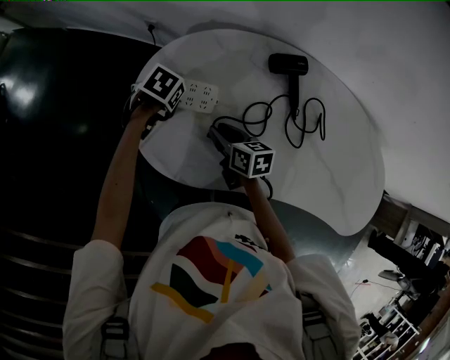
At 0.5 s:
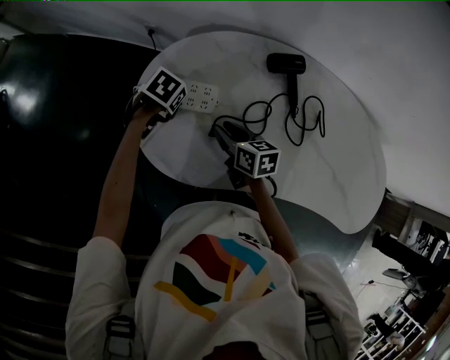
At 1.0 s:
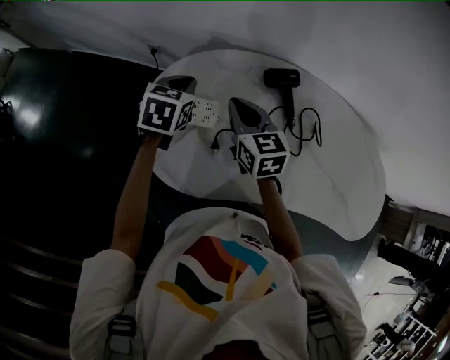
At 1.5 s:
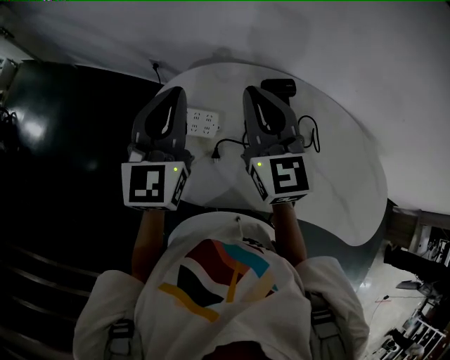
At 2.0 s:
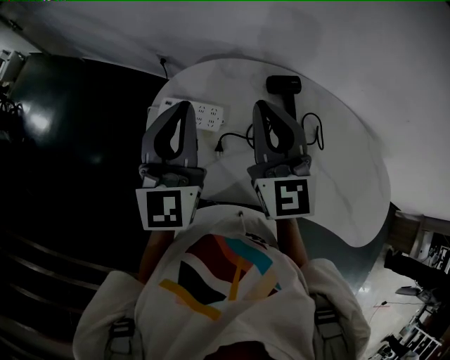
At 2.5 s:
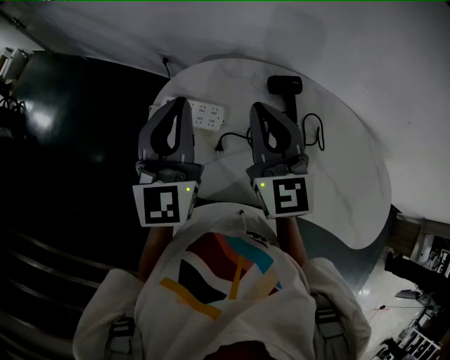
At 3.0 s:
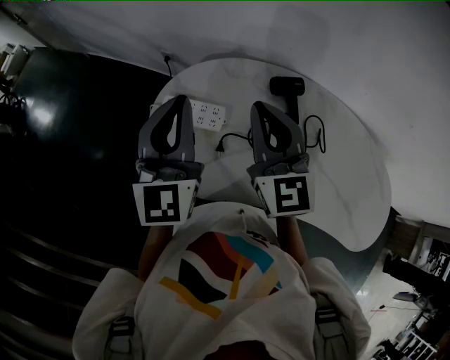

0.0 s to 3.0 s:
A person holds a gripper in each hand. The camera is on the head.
0.0 to 1.5 s: The two grippers go approximately 35 cm upward. The right gripper tips its fingers upward by approximately 30 degrees, and closes its fingers. The left gripper points its fingers roughly 80 degrees further upward.
1.5 to 3.0 s: There are only small adjustments of the grippers.

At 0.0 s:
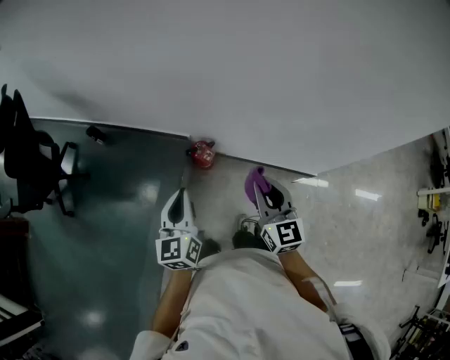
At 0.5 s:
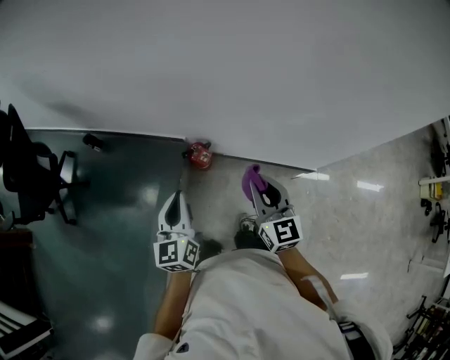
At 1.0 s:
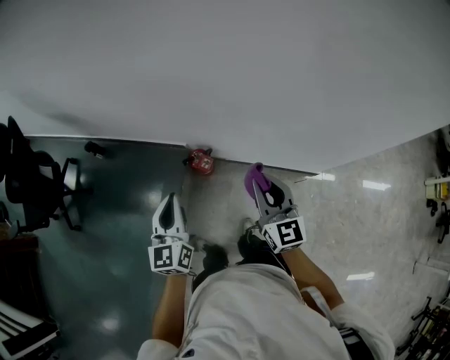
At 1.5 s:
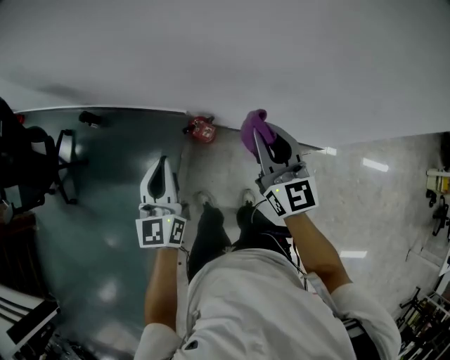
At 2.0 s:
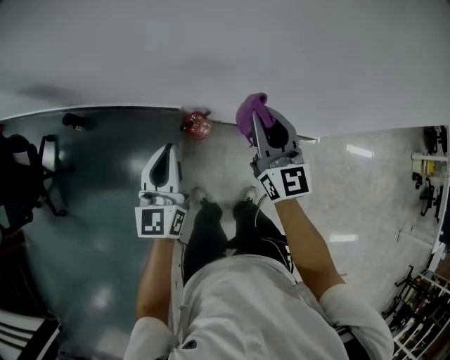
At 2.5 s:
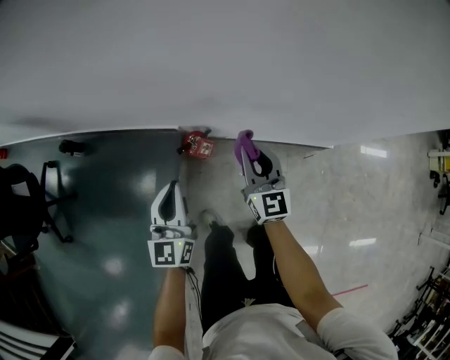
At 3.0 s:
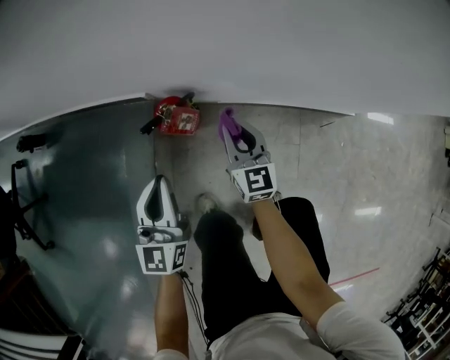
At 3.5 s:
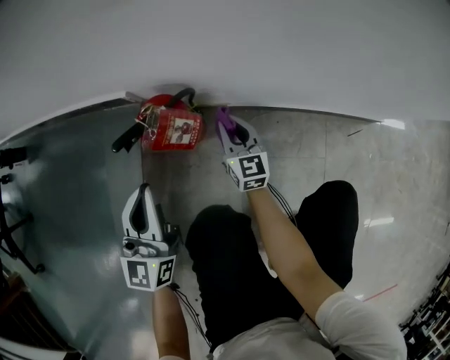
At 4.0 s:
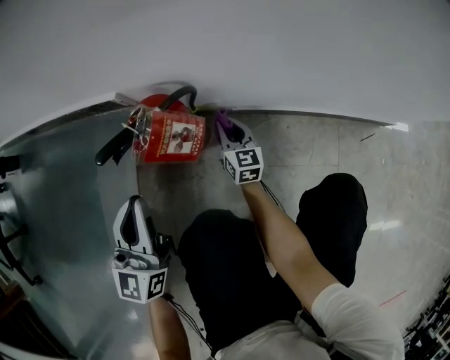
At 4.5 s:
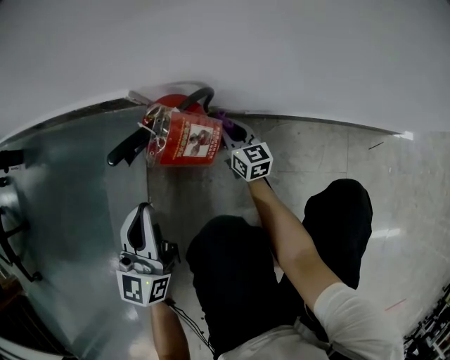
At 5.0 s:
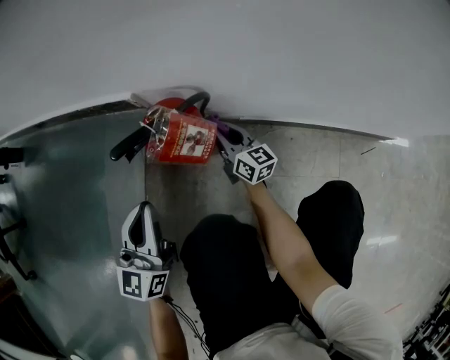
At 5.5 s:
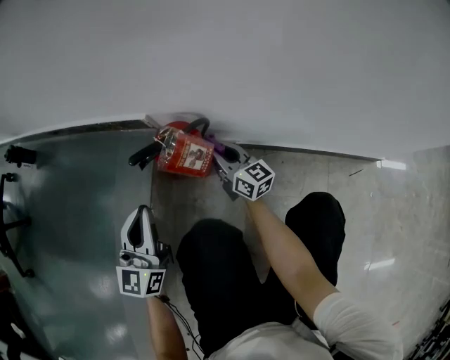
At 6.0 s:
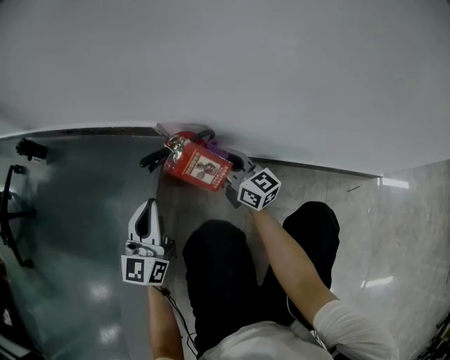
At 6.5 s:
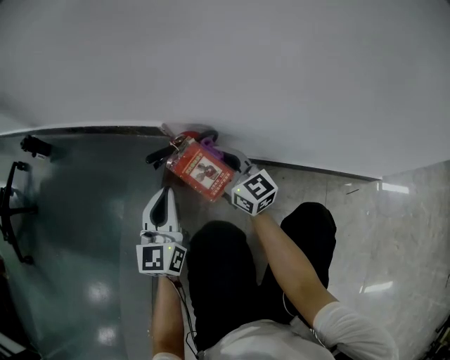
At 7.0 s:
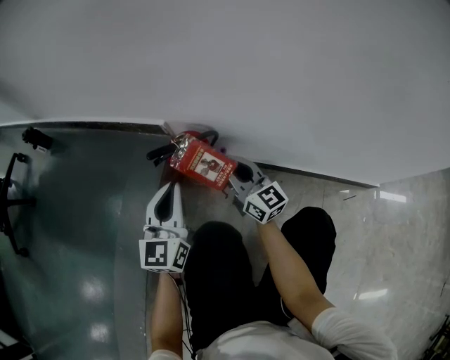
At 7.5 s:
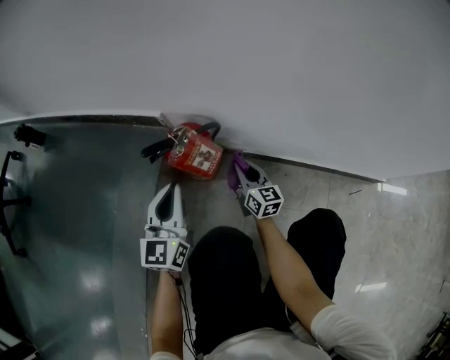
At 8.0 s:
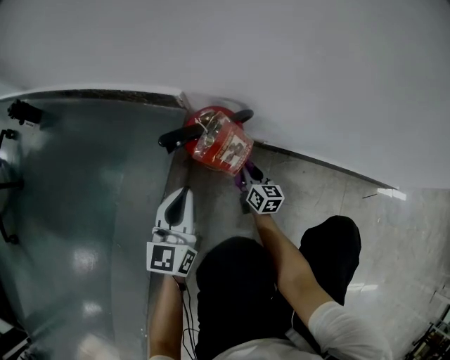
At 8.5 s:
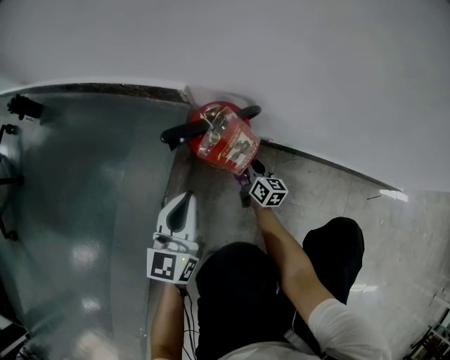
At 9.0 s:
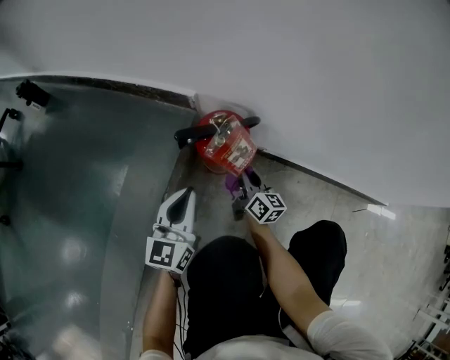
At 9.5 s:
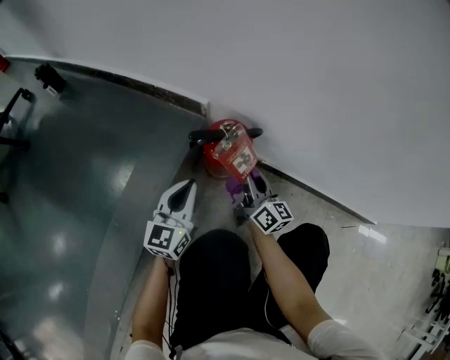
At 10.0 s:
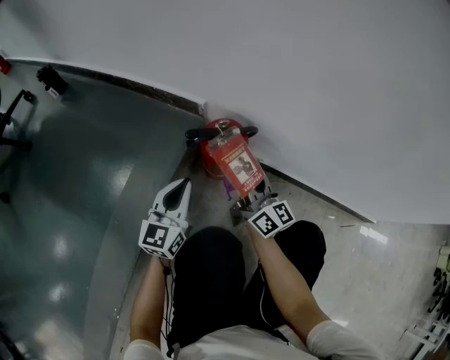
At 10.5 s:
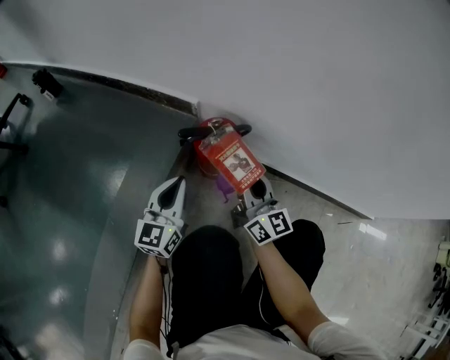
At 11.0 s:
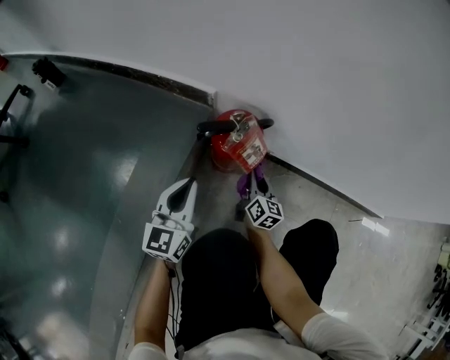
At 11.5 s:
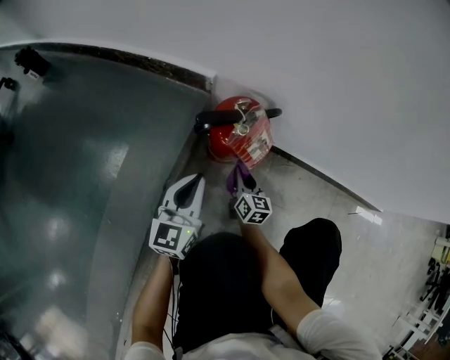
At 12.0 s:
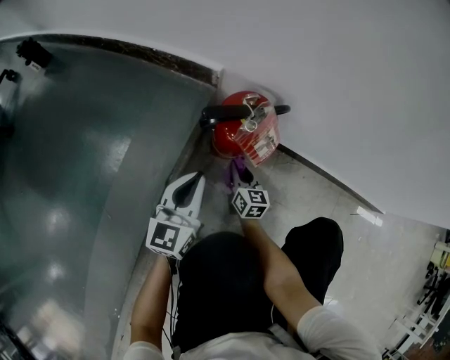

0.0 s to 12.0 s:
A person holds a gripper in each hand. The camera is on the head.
0.0 to 2.0 s: The grippers both shift forward by about 15 cm.
2.0 to 4.0 s: The right gripper shifts roughly 90 cm downward, and rotates approximately 20 degrees. Meanwhile the left gripper travels downward by approximately 60 cm.
4.0 to 6.0 s: The right gripper heads upward, covering approximately 20 cm, and turns by roughly 40 degrees.
6.0 to 8.0 s: The left gripper travels downward by some 10 cm. Meanwhile the right gripper moves downward, some 25 cm, and changes its angle by approximately 30 degrees.
8.0 to 10.0 s: The right gripper heads upward, covering roughly 30 cm, and changes its angle by roughly 30 degrees.
10.0 to 12.0 s: The left gripper heads downward, covering approximately 5 cm. The right gripper goes approximately 30 cm downward, and points its fingers roughly 30 degrees further downward.

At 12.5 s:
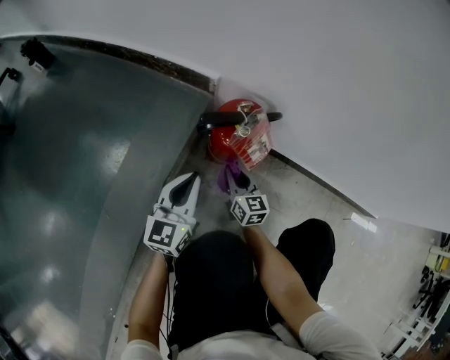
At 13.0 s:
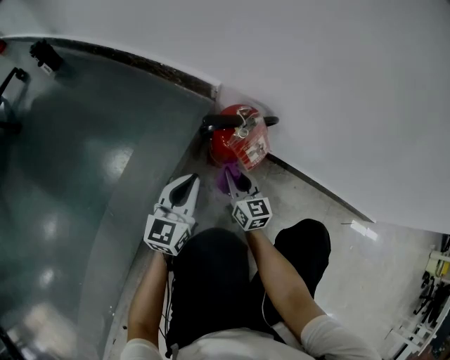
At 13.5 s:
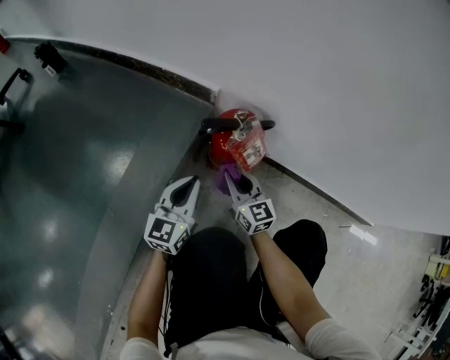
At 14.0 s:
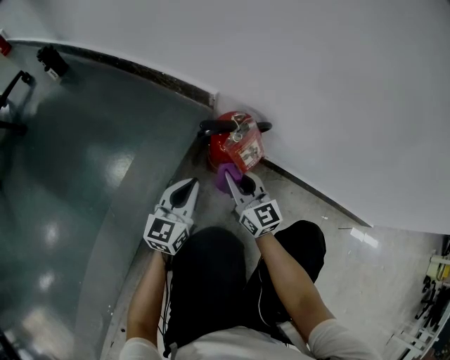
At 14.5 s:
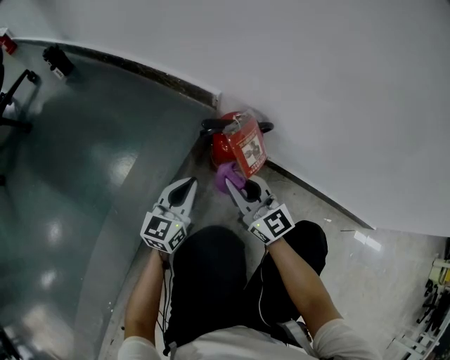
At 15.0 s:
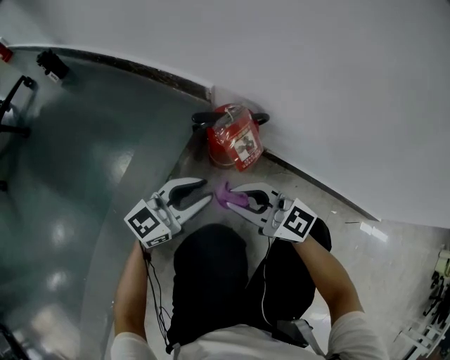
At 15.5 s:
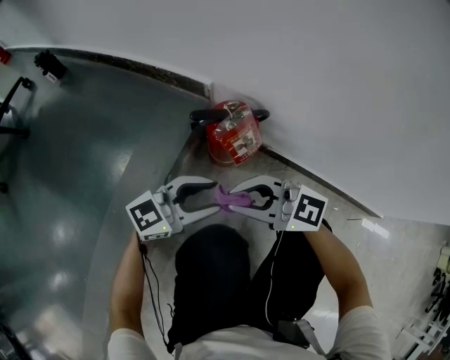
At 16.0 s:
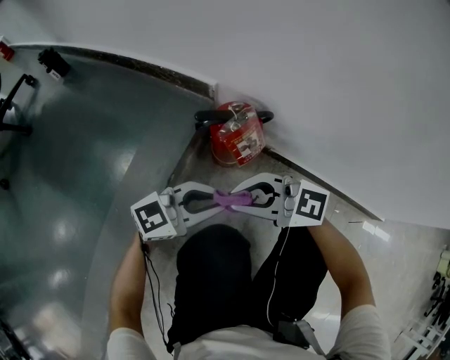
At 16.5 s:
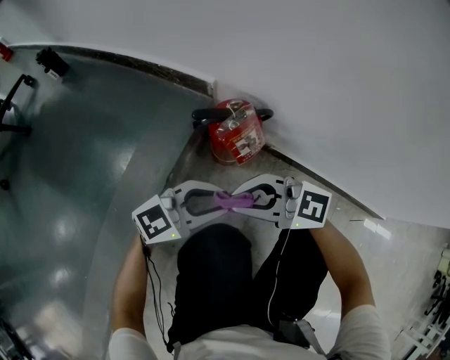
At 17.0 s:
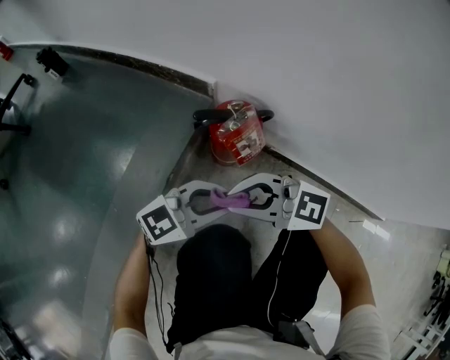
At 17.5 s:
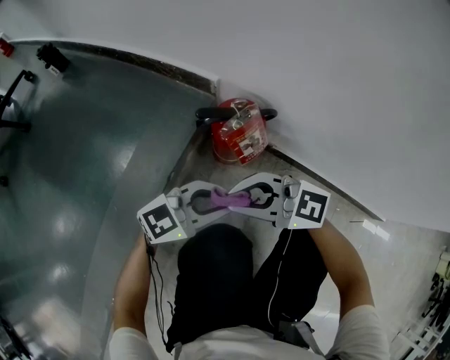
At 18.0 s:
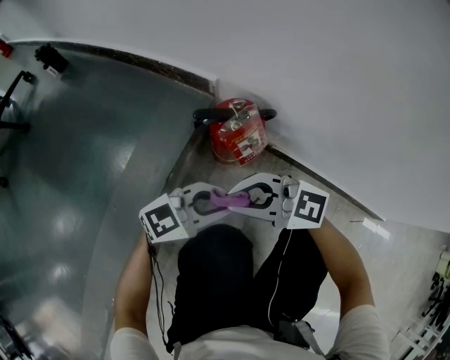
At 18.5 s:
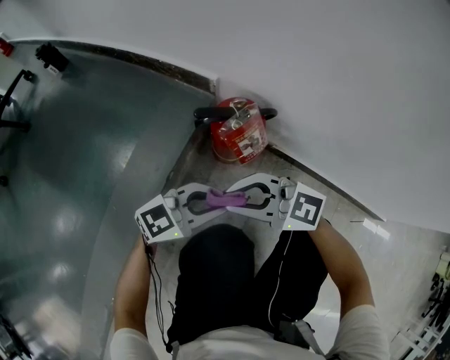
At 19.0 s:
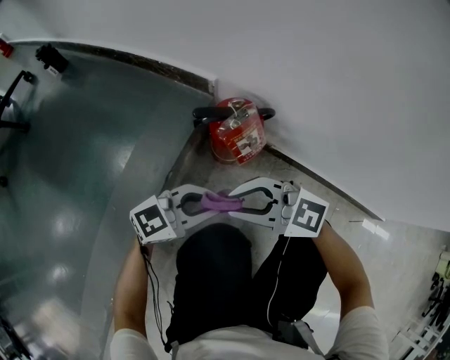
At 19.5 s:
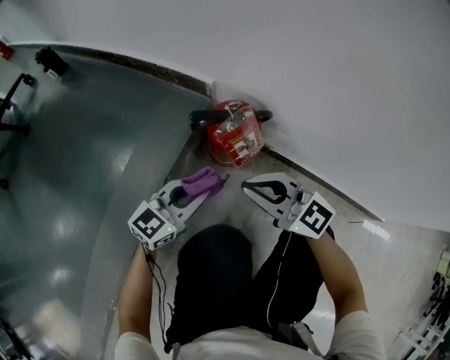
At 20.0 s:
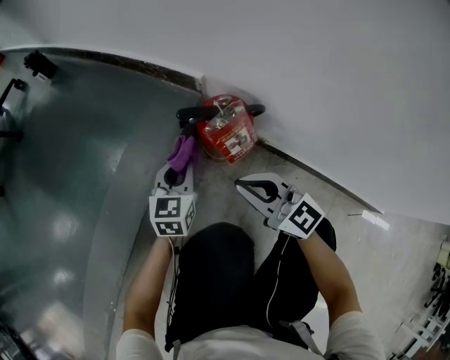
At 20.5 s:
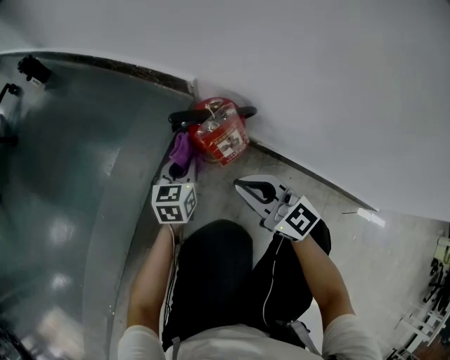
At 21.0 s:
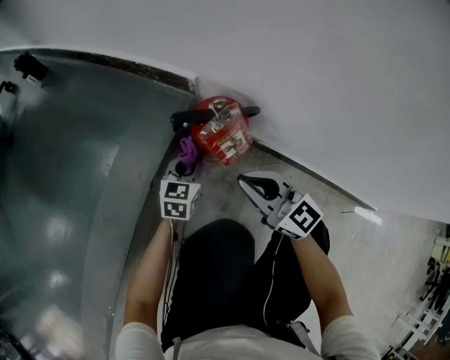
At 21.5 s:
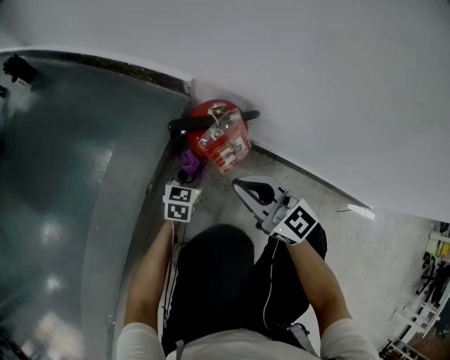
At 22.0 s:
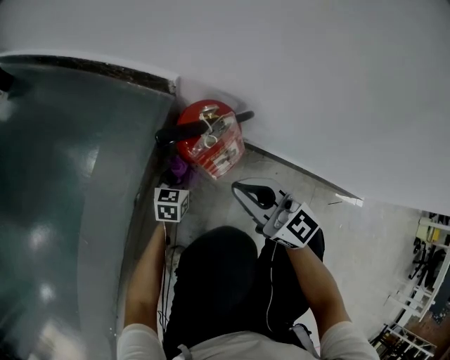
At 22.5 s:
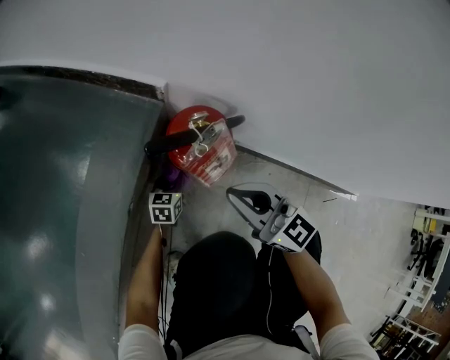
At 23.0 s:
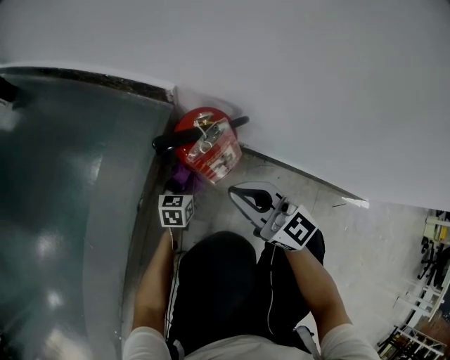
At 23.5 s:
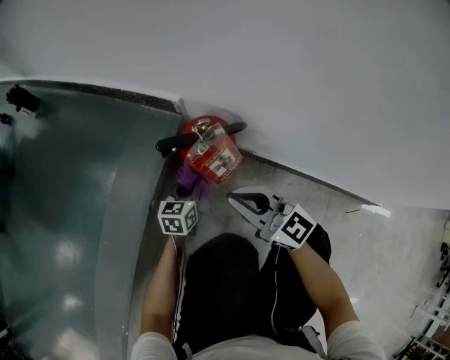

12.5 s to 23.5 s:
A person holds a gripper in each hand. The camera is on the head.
12.5 to 14.5 s: The right gripper travels upward by about 20 cm, and swivels some 30 degrees.
14.5 to 16.0 s: The left gripper ends up some 15 cm from where it was, rotates some 50 degrees, and opens, then closes again, while the right gripper changes place by approximately 10 cm, and swivels about 40 degrees.
16.0 to 18.0 s: The grippers stay close to where they were, moving slightly.
18.0 to 20.0 s: The right gripper shifts by some 5 cm, and changes its angle by roughly 30 degrees, while the left gripper ends up roughly 15 cm from where it was, and swivels roughly 60 degrees.
20.0 to 21.5 s: The left gripper moves downward, approximately 15 cm.
21.5 to 23.5 s: The left gripper reaches roughly 10 cm downward, then returns.
